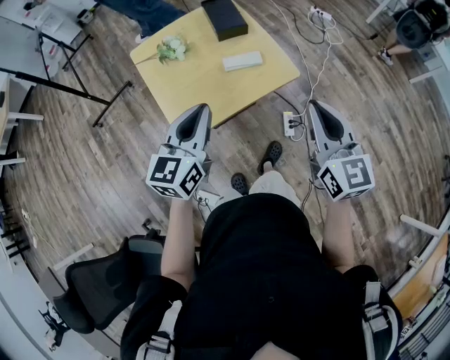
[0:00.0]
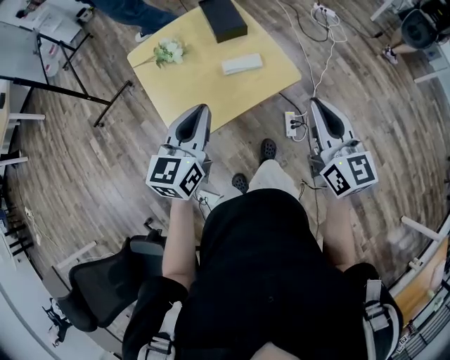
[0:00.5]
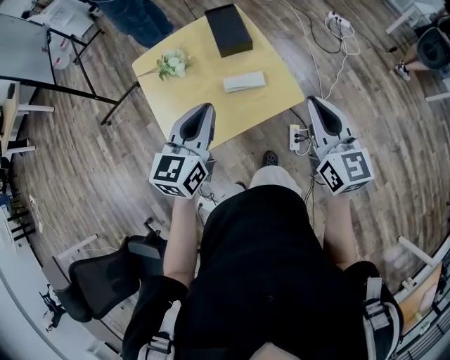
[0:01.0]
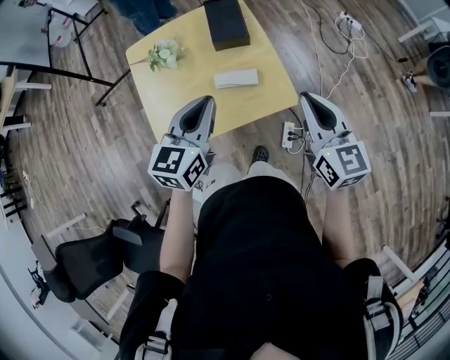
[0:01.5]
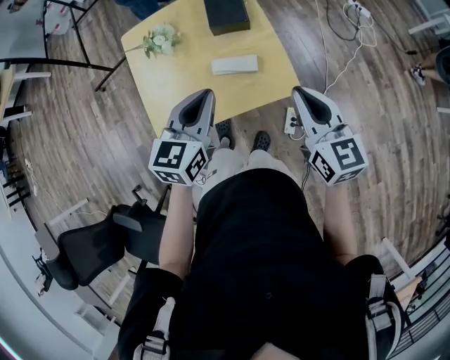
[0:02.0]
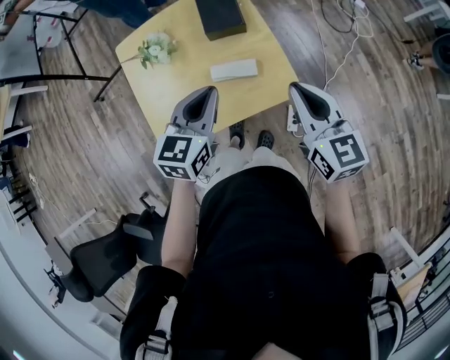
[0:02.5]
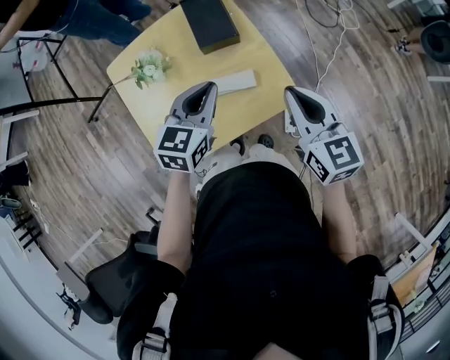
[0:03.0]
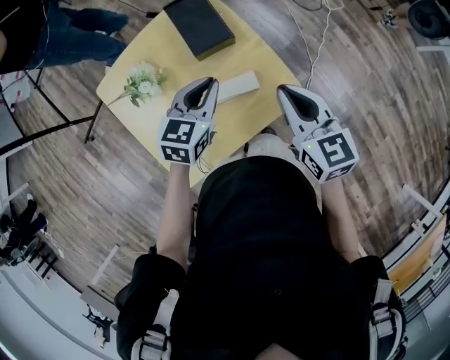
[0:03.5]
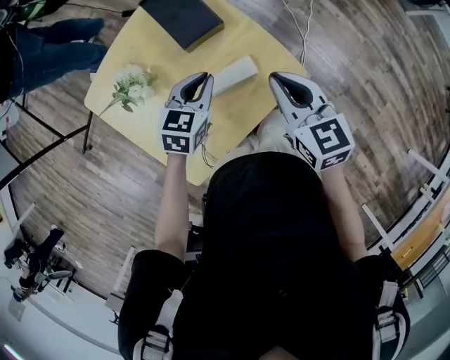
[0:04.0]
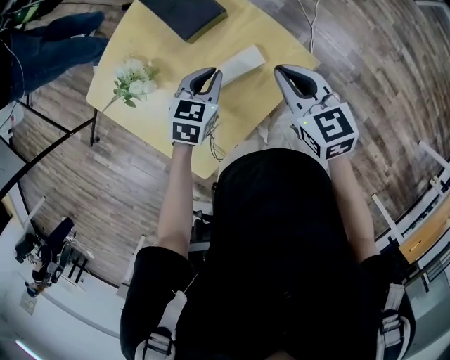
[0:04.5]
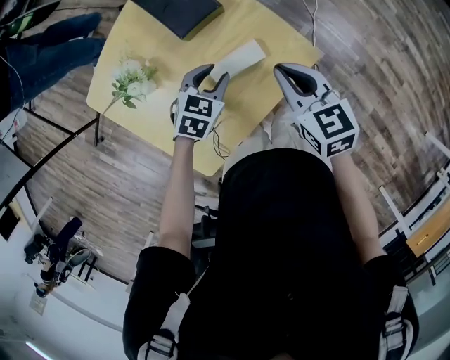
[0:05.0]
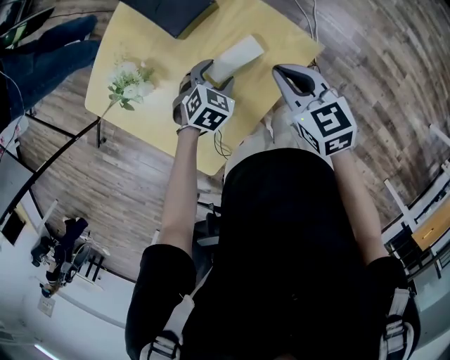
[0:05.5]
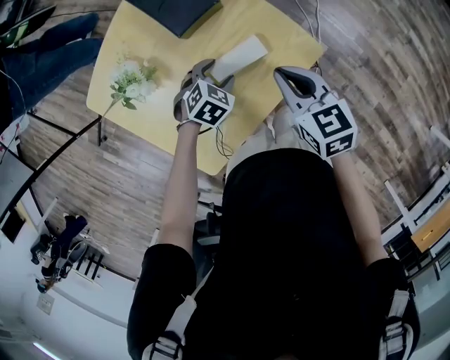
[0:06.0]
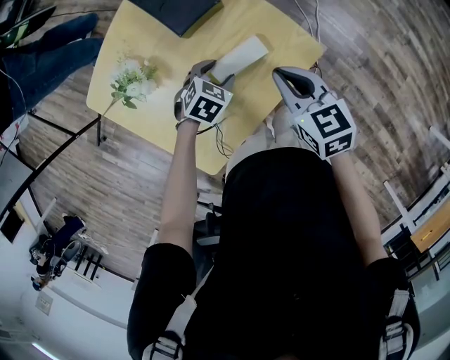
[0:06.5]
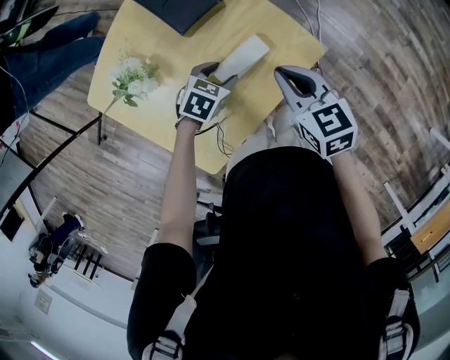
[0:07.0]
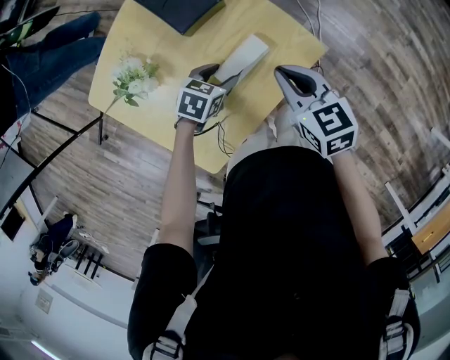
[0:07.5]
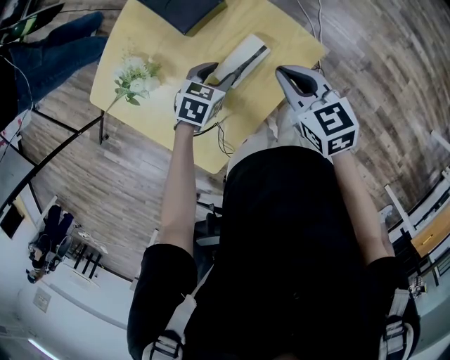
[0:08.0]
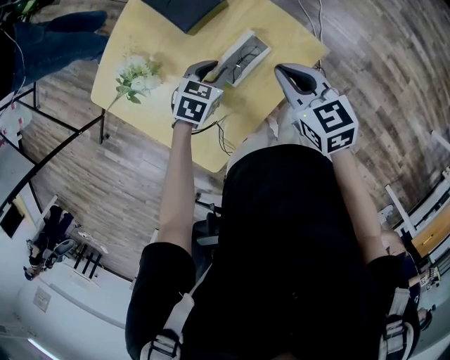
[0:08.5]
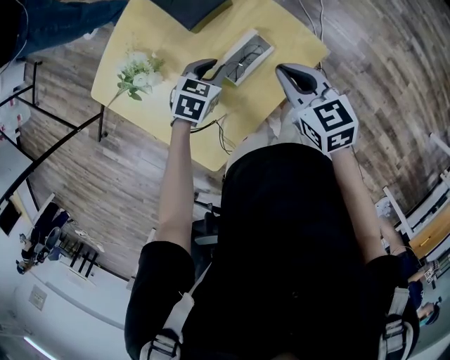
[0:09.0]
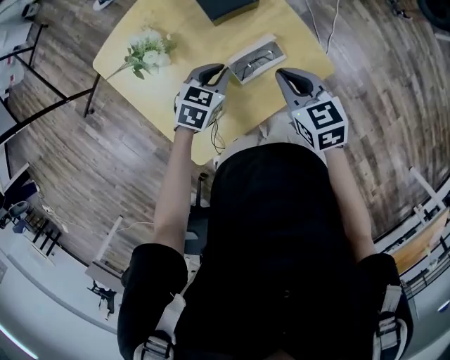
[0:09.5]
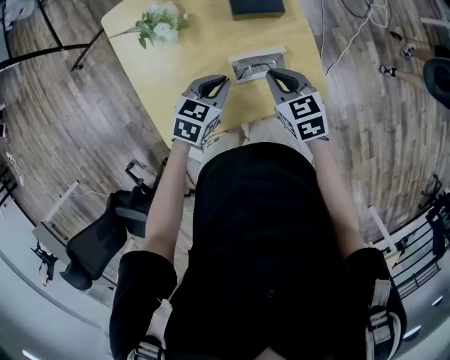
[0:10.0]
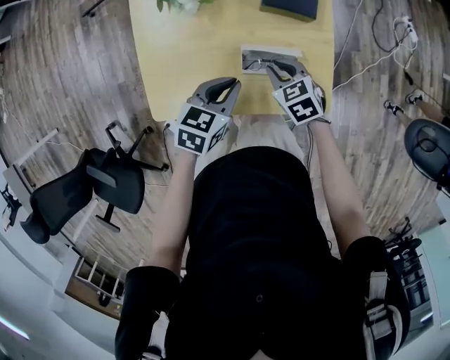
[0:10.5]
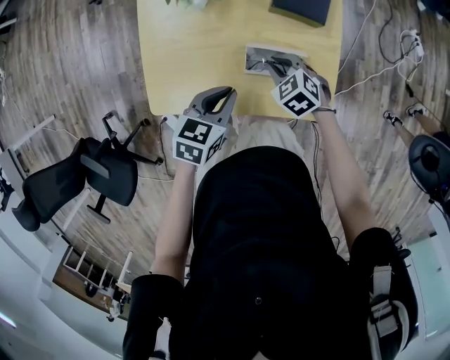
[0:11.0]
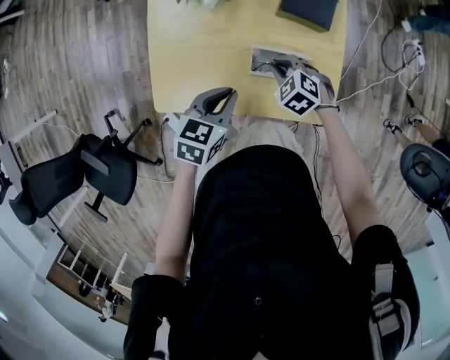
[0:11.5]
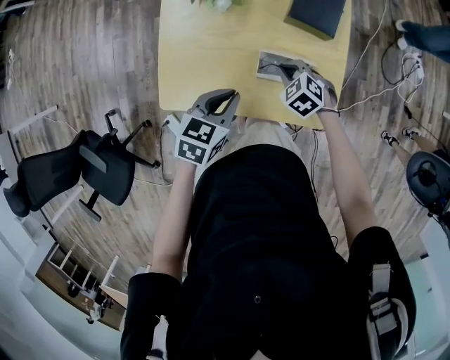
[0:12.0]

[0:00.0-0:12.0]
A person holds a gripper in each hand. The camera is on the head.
0:00.0 to 0:02.0: Both grippers travel together forward and to the right, roughly 25 cm. The right gripper rotates some 20 degrees.
0:02.0 to 0:04.0: The right gripper shifts by about 20 cm, and changes its angle by about 20 degrees. The left gripper shifts by about 25 cm, and changes its angle by some 40 degrees.
0:04.0 to 0:06.0: The right gripper goes about 10 cm downward, while the left gripper shifts some 15 cm downward, swivels approximately 40 degrees, and opens up.
0:08.0 to 0:10.0: The right gripper moves some 10 cm, and rotates roughly 30 degrees; the left gripper moves some 10 cm, changes its angle by some 30 degrees, and closes its fingers.
0:10.0 to 0:12.0: The right gripper moves downward, approximately 10 cm, and rotates around the line of its fingers by about 50 degrees, counterclockwise from behind, while the left gripper changes place by about 10 cm, and rotates about 30 degrees.

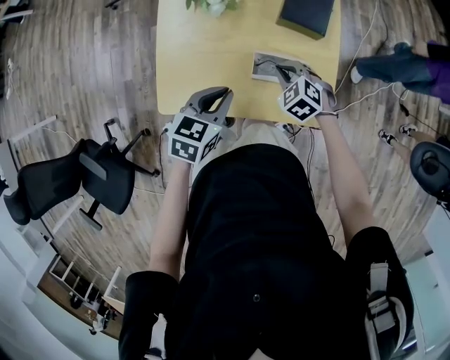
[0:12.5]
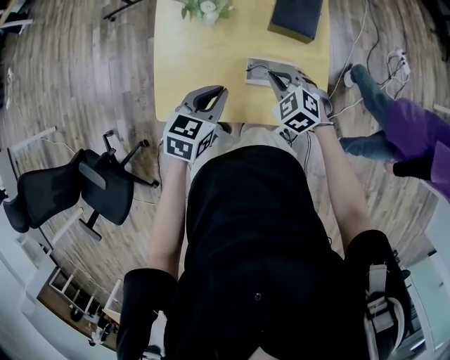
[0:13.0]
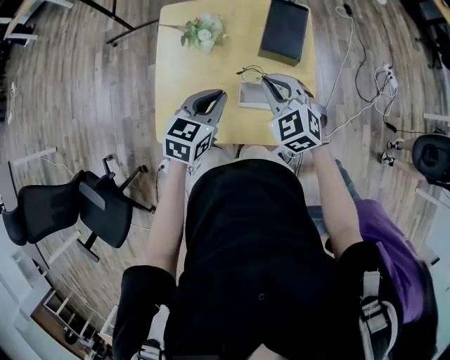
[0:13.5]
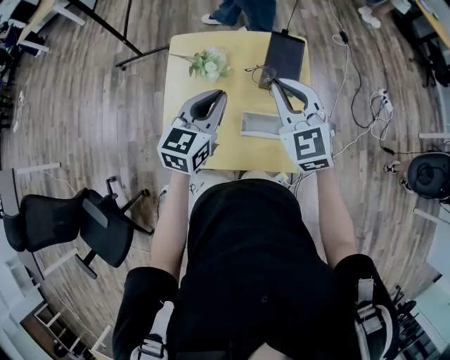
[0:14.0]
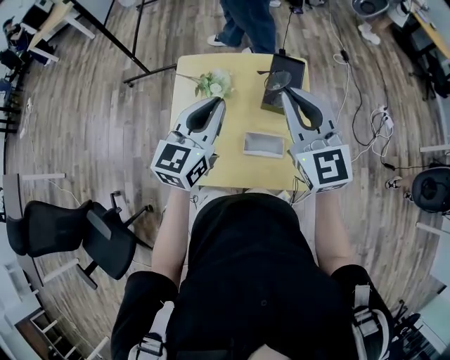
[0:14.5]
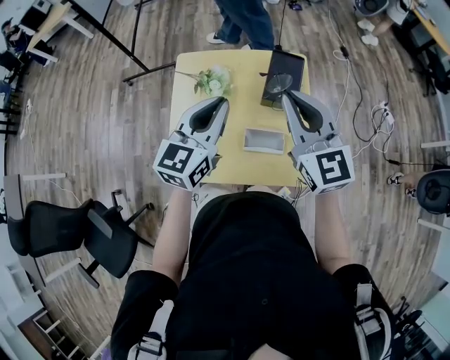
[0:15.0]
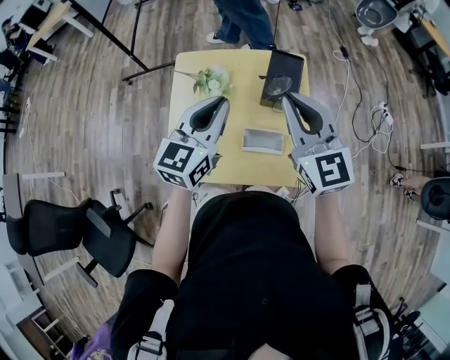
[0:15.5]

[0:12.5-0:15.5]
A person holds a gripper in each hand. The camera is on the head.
0:12.5 to 0:14.0: The left gripper moves upward and forward, about 20 cm, and swivels roughly 30 degrees, while the right gripper shifts some 35 cm upward, and points its fingers about 40 degrees further upward.
0:14.0 to 0:15.5: Both grippers travel together upward, roughly 10 cm. The right gripper turns by approximately 20 degrees.

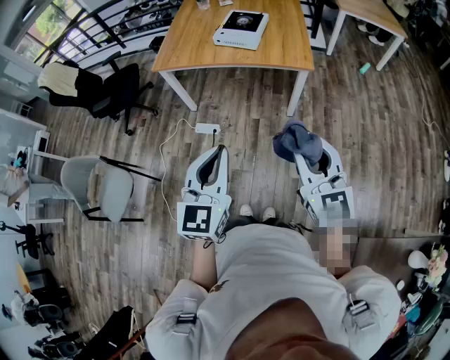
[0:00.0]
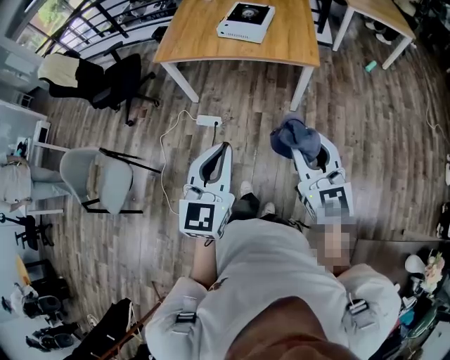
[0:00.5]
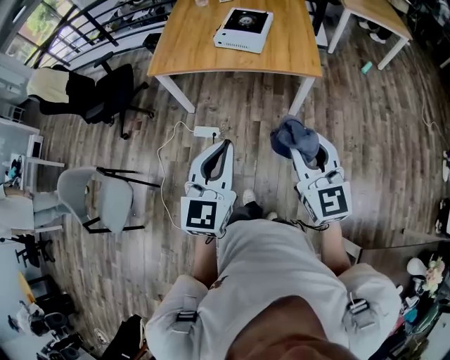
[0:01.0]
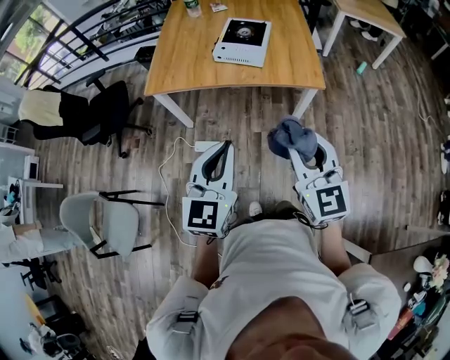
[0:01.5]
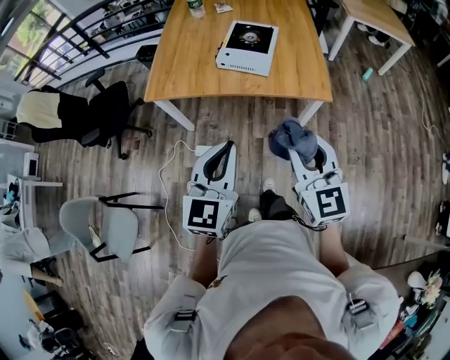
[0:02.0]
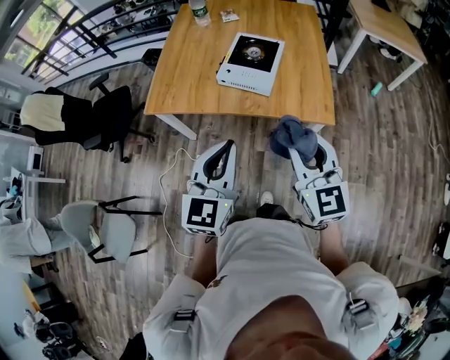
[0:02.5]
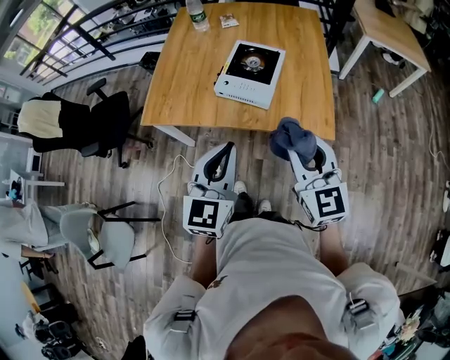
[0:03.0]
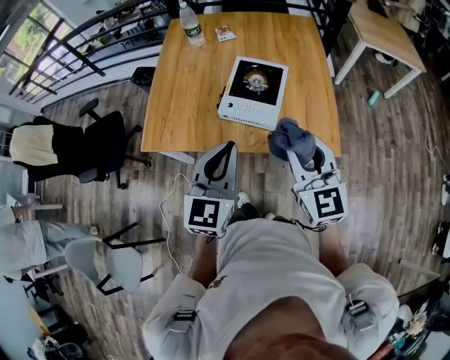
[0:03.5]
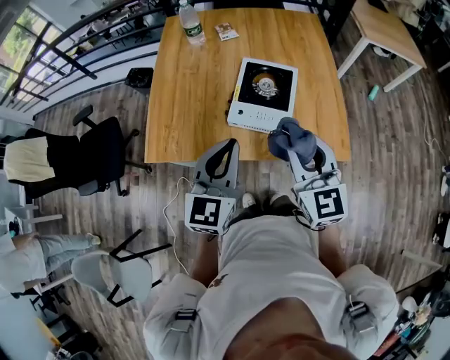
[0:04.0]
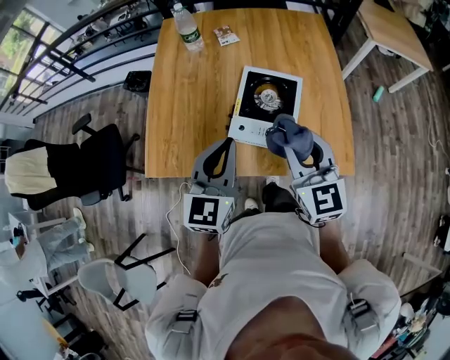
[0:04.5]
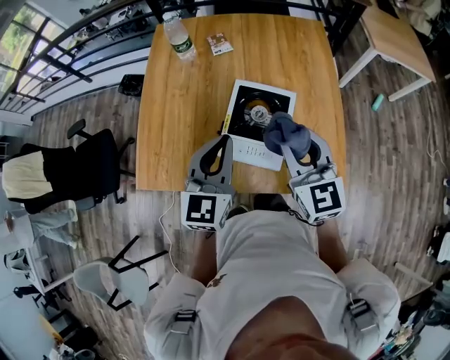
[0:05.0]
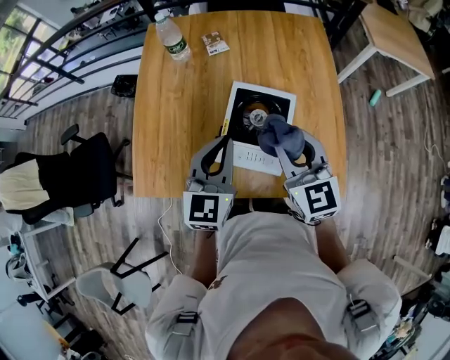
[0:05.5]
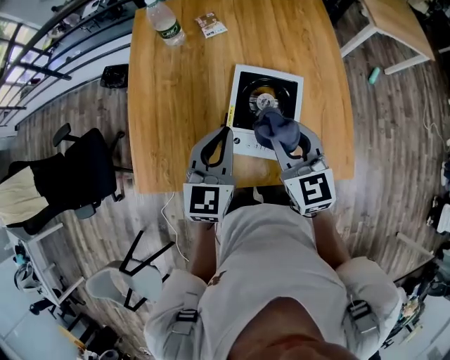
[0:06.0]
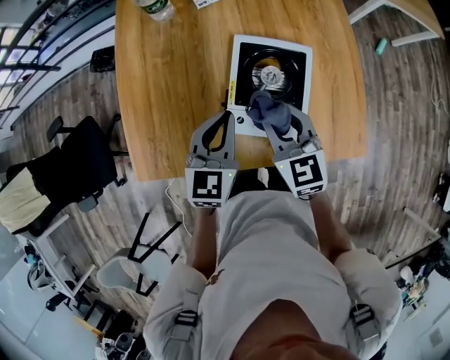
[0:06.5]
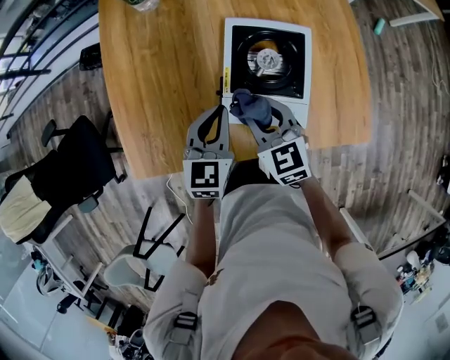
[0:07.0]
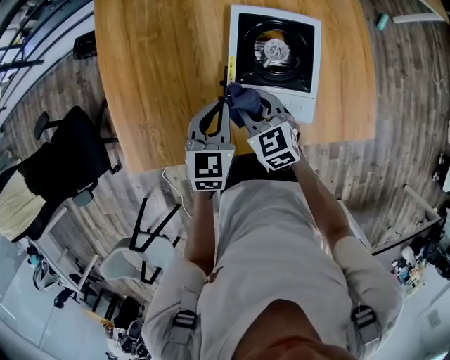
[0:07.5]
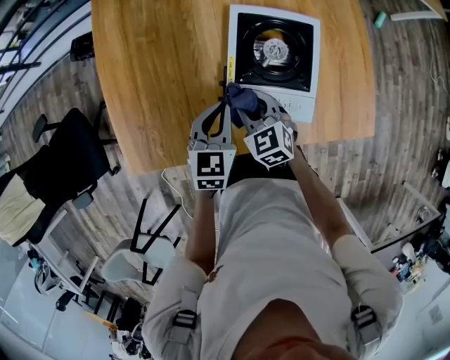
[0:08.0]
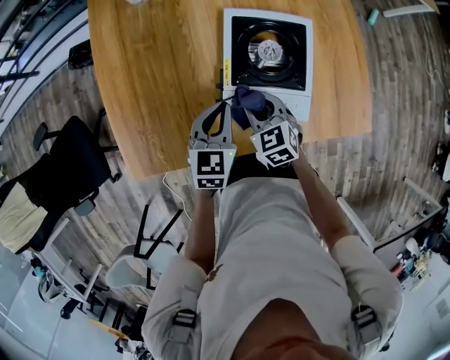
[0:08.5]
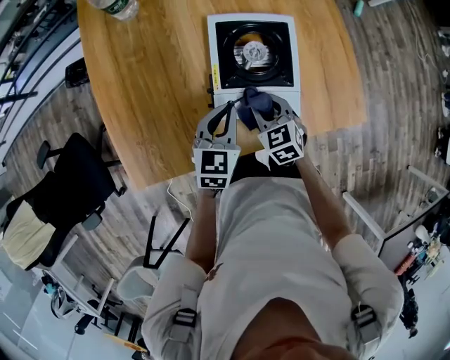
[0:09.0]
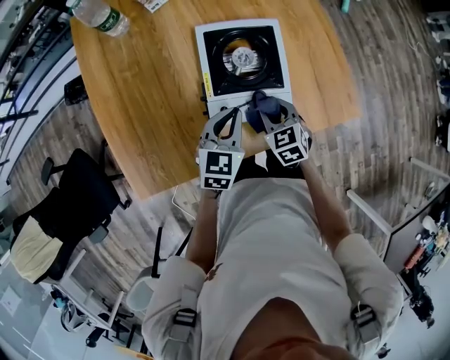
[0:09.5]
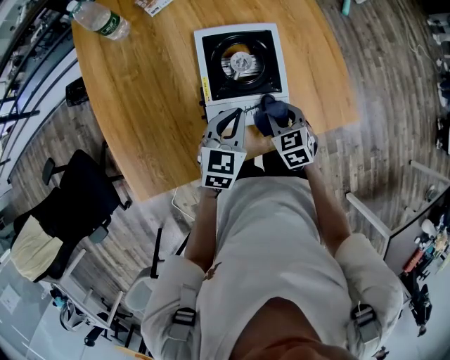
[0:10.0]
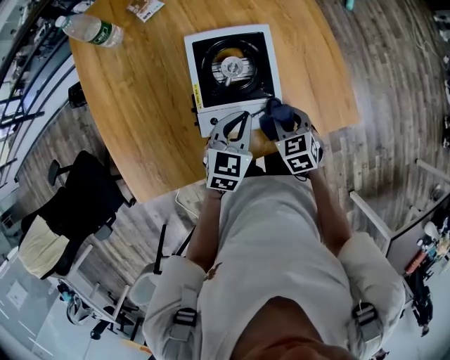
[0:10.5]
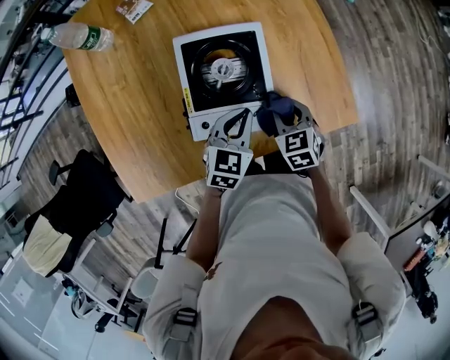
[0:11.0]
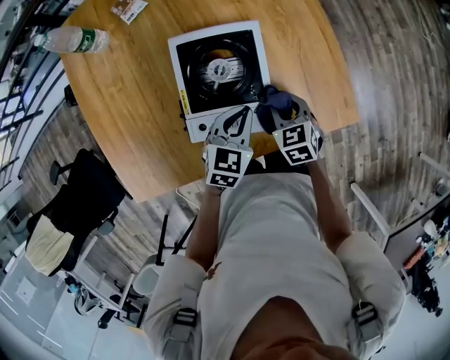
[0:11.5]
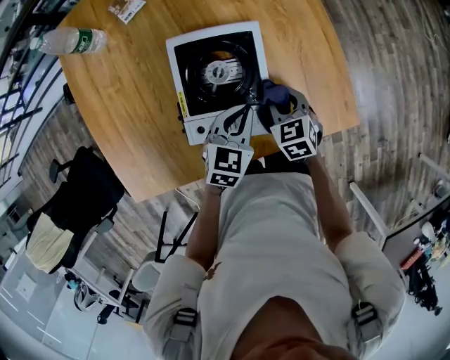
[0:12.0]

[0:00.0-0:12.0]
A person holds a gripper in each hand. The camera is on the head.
0:00.0 to 0:02.0: The two grippers go some 30 cm forward.
0:02.0 to 0:04.0: Both grippers travel together forward, some 35 cm.
0:04.0 to 0:06.0: The grippers both shift forward by roughly 20 cm.
0:06.0 to 0:08.0: The right gripper is displaced downward and to the left by some 25 cm, and rotates roughly 20 degrees; the left gripper travels downward by some 20 cm.
0:08.0 to 0:10.0: The left gripper is displaced to the right by about 10 cm; the right gripper travels to the right by roughly 15 cm, and rotates roughly 20 degrees.
0:10.0 to 0:12.0: The left gripper is displaced to the right and forward by some 10 cm; the right gripper goes approximately 10 cm forward and to the right.
